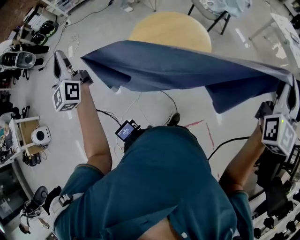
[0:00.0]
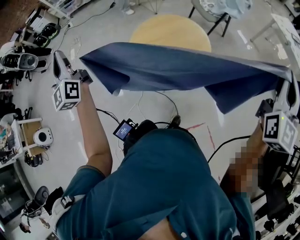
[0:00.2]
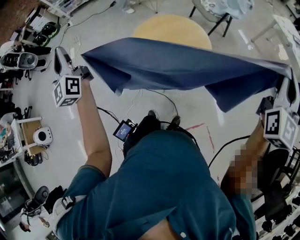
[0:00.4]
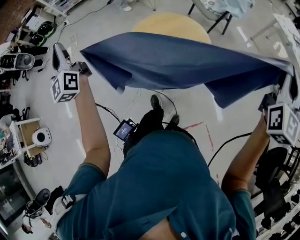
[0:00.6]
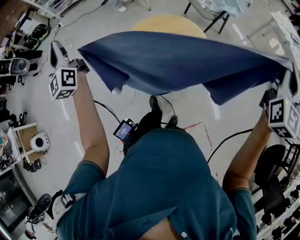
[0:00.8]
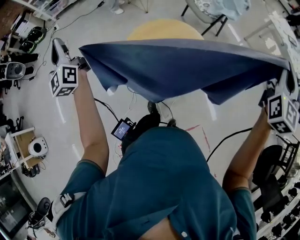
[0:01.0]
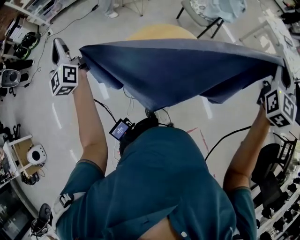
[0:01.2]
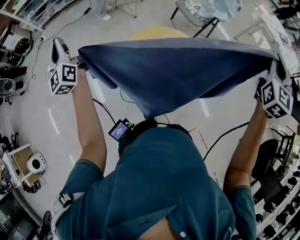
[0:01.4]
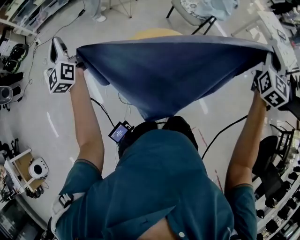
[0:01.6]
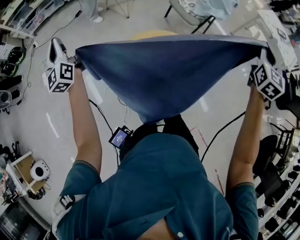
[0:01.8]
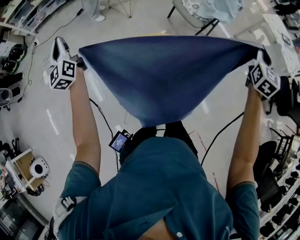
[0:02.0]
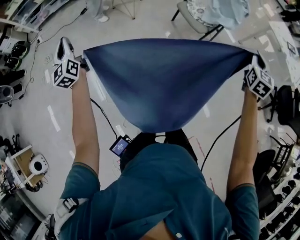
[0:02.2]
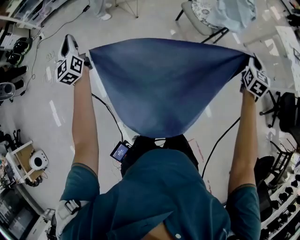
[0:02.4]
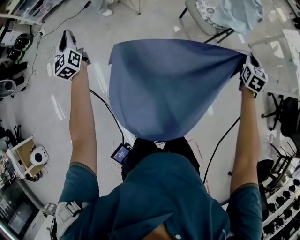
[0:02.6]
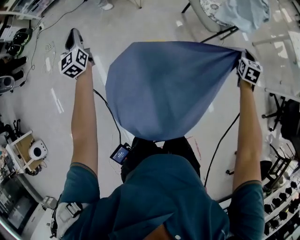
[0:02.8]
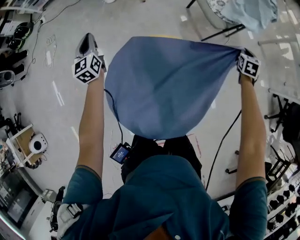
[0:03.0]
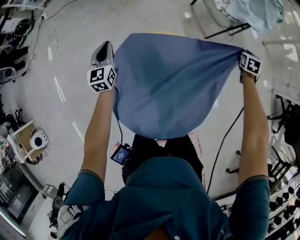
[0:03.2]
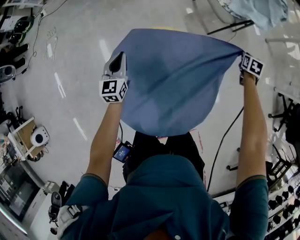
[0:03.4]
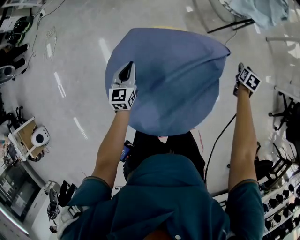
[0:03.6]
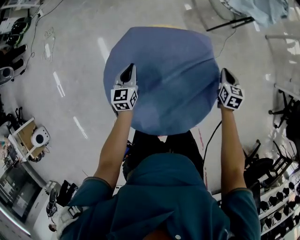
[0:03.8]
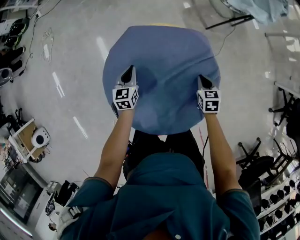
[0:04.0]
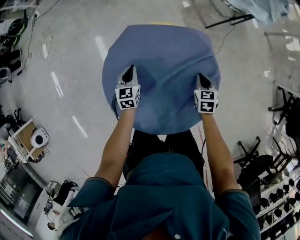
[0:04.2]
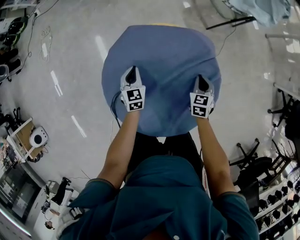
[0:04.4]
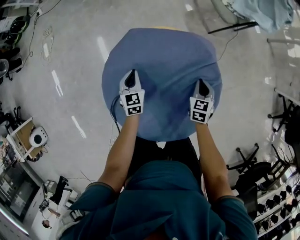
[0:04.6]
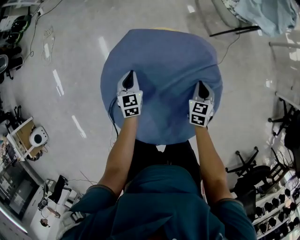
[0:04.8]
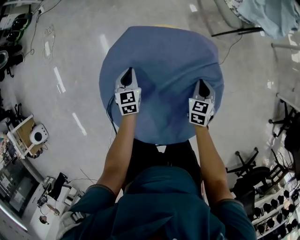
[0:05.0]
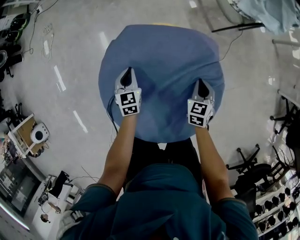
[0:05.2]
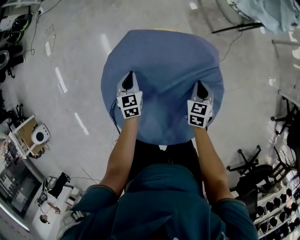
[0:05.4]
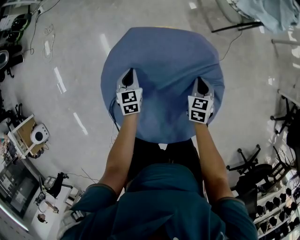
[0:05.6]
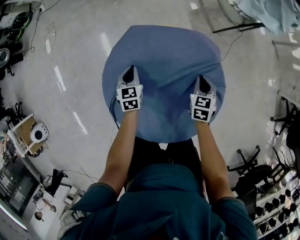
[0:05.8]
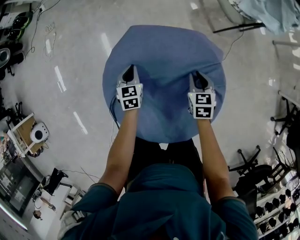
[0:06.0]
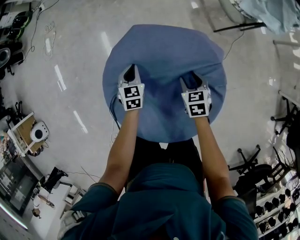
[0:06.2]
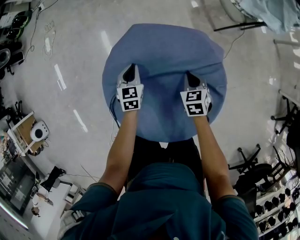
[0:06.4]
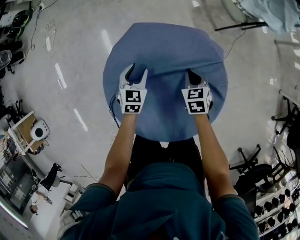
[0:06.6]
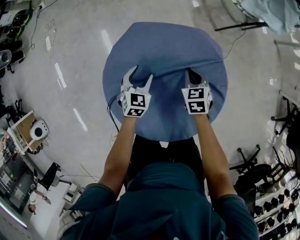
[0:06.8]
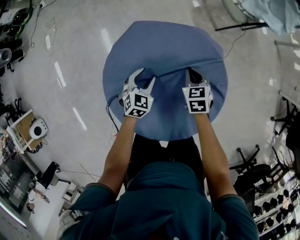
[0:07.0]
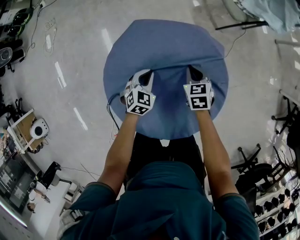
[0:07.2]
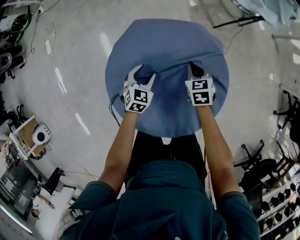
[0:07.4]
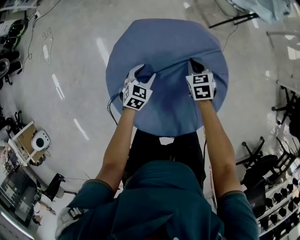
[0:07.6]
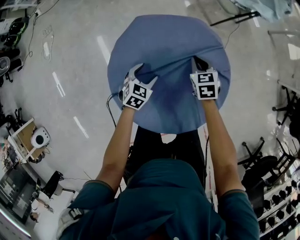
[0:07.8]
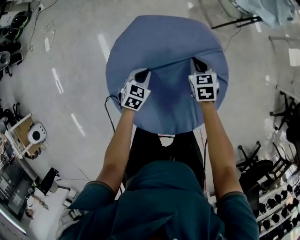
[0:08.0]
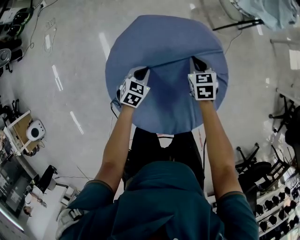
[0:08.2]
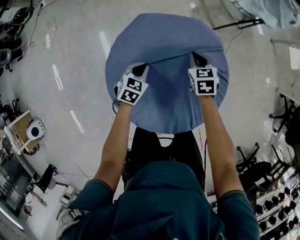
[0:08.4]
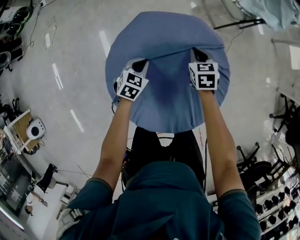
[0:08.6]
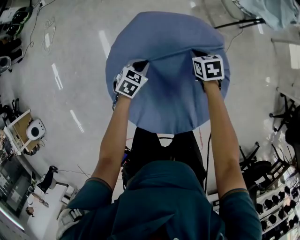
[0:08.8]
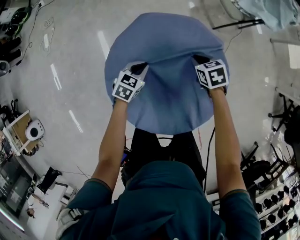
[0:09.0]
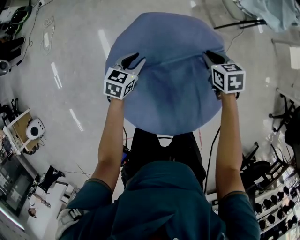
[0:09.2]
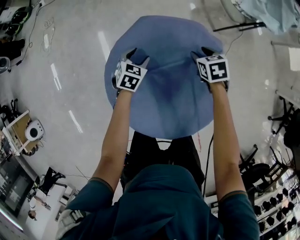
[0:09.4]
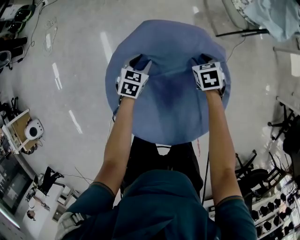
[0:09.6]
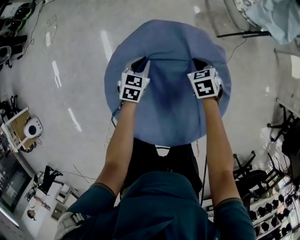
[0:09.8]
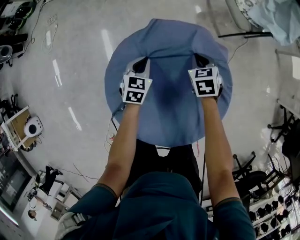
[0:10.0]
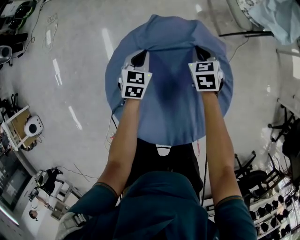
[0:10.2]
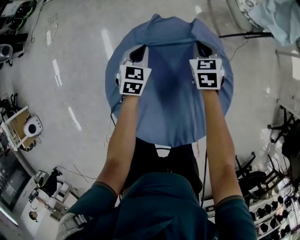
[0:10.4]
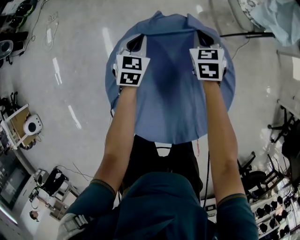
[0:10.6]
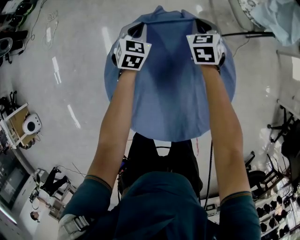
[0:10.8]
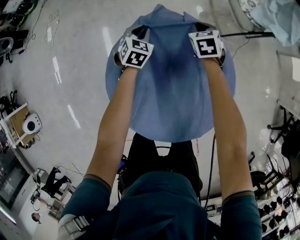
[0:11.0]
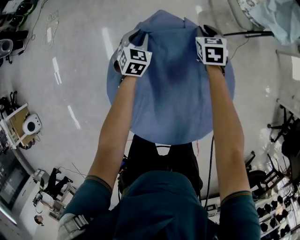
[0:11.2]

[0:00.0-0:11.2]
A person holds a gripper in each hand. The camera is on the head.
0:00.0 to 0:01.6: The two grippers go some 35 cm forward.
0:01.6 to 0:03.2: The left gripper heads downward, to the right and forward, covering about 40 cm, and points its fingers roughly 30 degrees further downward; the right gripper heads downward and forward, covering approximately 60 cm, and points its fingers some 50 degrees further downward.
0:03.2 to 0:04.8: The left gripper shifts roughly 20 cm downward, backward and to the right, while the right gripper travels to the left and backward by approximately 30 cm, and opens, then closes again.
0:04.8 to 0:06.4: The right gripper travels to the left by roughly 10 cm, and opens, then closes again.
0:06.4 to 0:08.0: The left gripper heads backward, covering roughly 10 cm, swivels approximately 30 degrees, and opens, then closes once more.
0:08.0 to 0:09.6: The left gripper shifts about 10 cm forward, and opens up; the right gripper is displaced forward by some 5 cm, and opens up.
0:09.6 to 0:11.2: The two grippers go some 10 cm forward. The right gripper closes.

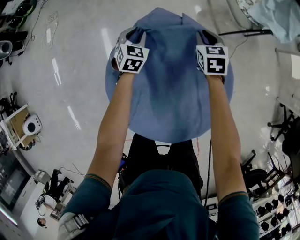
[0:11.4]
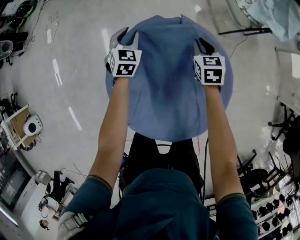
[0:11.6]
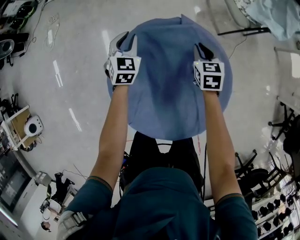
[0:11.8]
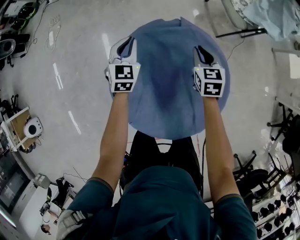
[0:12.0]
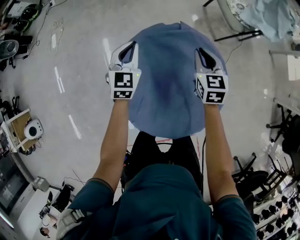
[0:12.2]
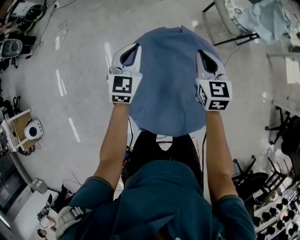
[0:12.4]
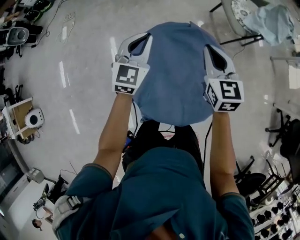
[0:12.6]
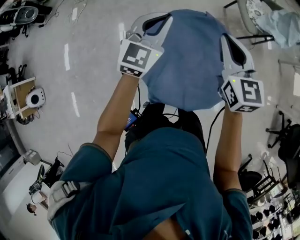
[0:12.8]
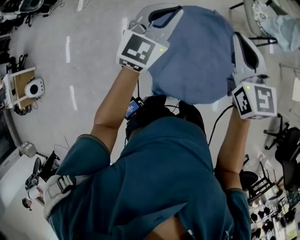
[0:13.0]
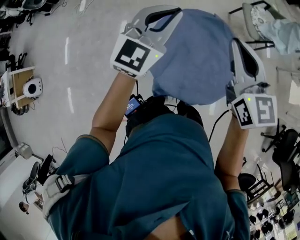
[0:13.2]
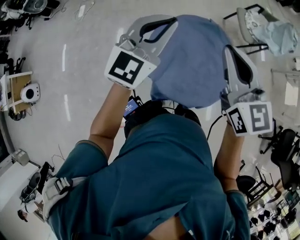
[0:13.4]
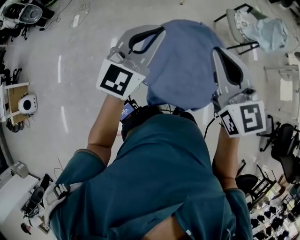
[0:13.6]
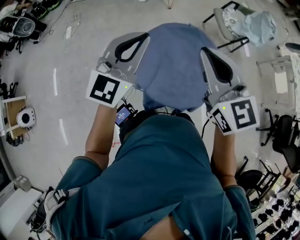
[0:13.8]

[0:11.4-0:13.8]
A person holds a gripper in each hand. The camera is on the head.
0:11.4 to 0:12.6: Both grippers move upward and backward, approximately 35 cm. The right gripper swivels approximately 20 degrees; the left gripper rotates some 30 degrees, and closes its fingers.
0:12.6 to 0:13.8: The left gripper heads backward and upward, covering roughly 30 cm. The right gripper shifts about 35 cm backward, upward and to the left.

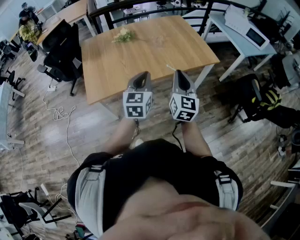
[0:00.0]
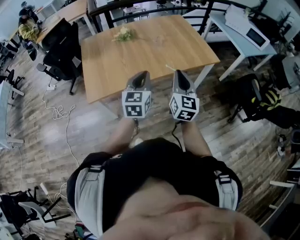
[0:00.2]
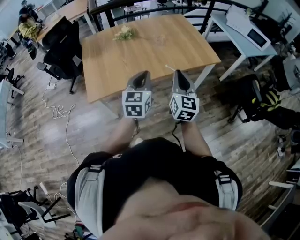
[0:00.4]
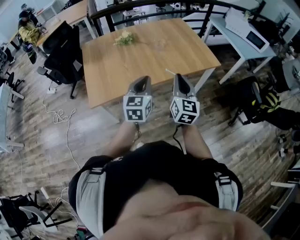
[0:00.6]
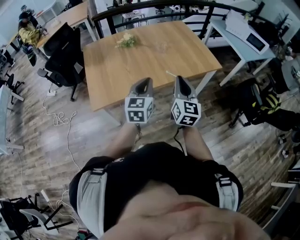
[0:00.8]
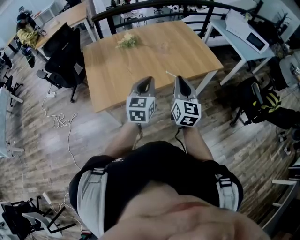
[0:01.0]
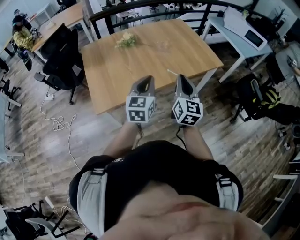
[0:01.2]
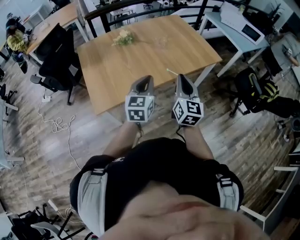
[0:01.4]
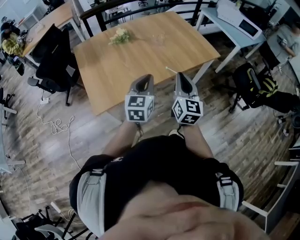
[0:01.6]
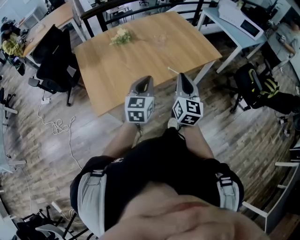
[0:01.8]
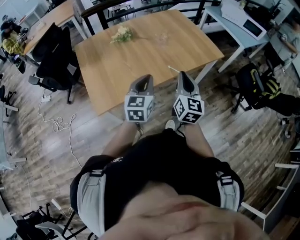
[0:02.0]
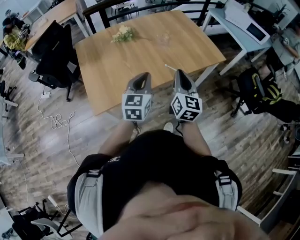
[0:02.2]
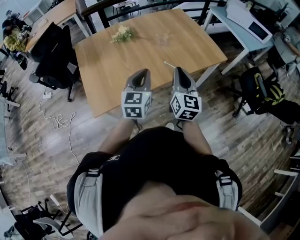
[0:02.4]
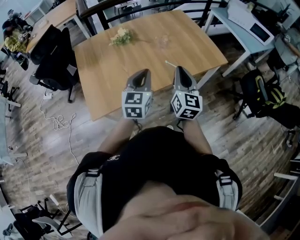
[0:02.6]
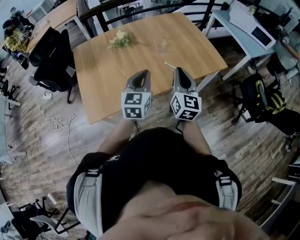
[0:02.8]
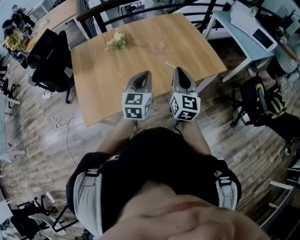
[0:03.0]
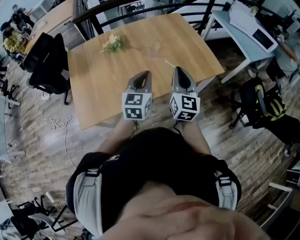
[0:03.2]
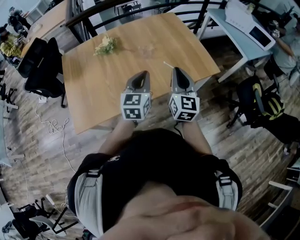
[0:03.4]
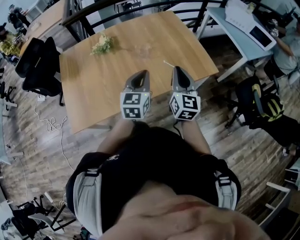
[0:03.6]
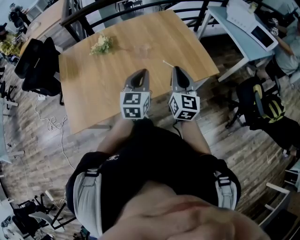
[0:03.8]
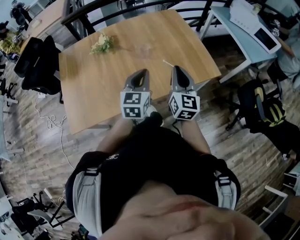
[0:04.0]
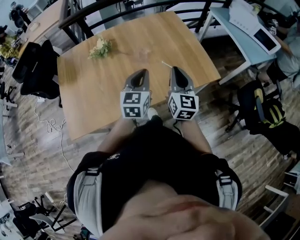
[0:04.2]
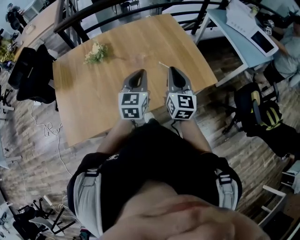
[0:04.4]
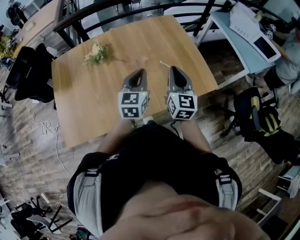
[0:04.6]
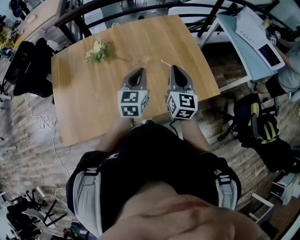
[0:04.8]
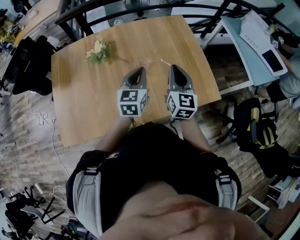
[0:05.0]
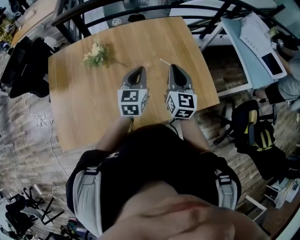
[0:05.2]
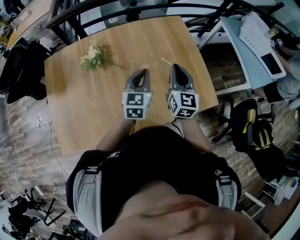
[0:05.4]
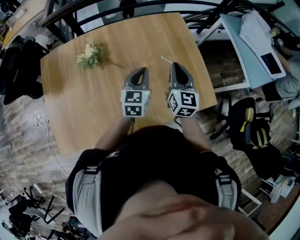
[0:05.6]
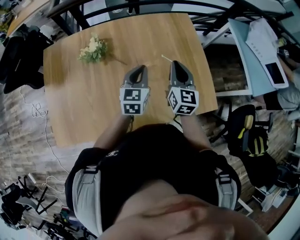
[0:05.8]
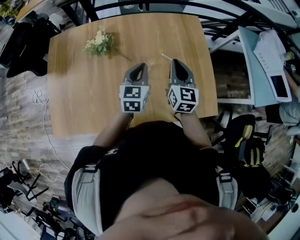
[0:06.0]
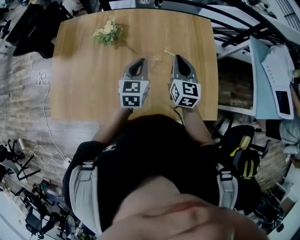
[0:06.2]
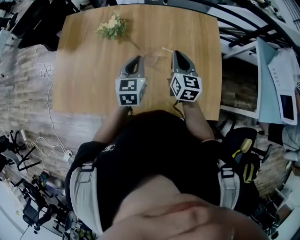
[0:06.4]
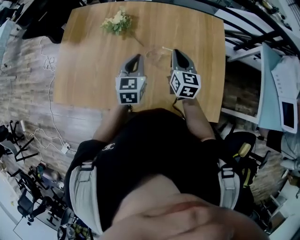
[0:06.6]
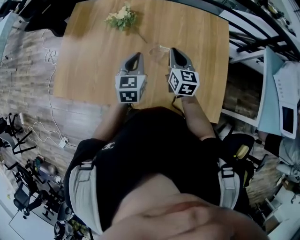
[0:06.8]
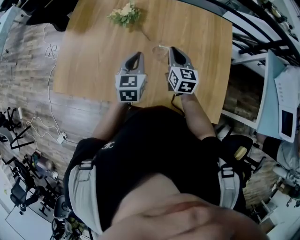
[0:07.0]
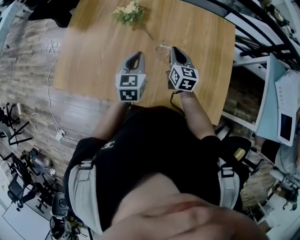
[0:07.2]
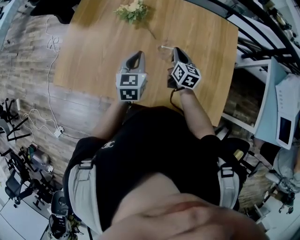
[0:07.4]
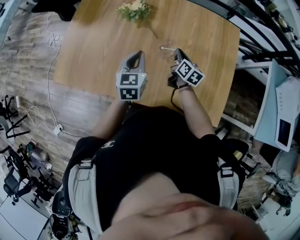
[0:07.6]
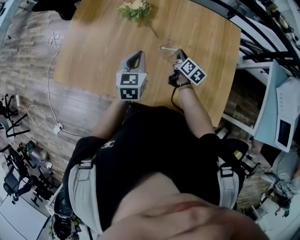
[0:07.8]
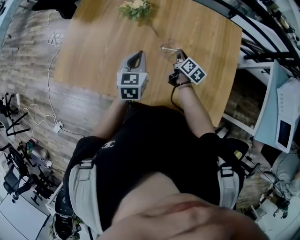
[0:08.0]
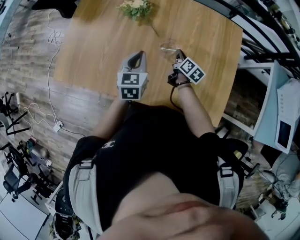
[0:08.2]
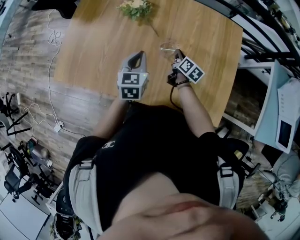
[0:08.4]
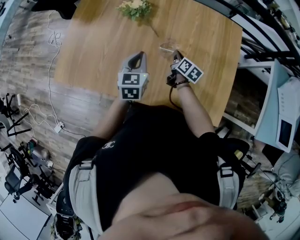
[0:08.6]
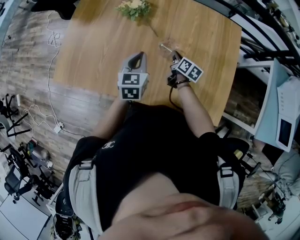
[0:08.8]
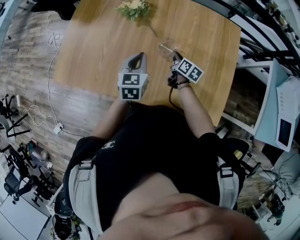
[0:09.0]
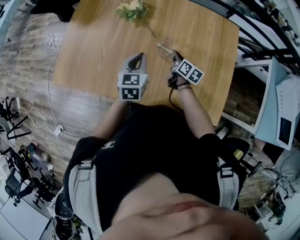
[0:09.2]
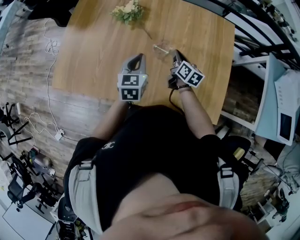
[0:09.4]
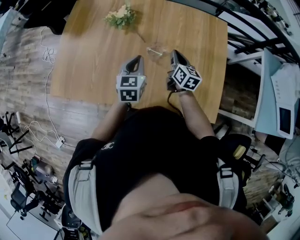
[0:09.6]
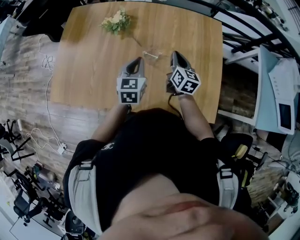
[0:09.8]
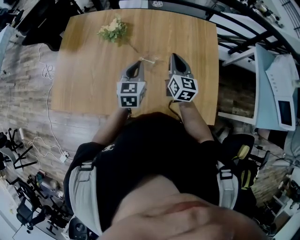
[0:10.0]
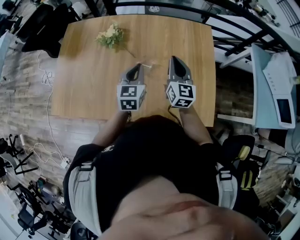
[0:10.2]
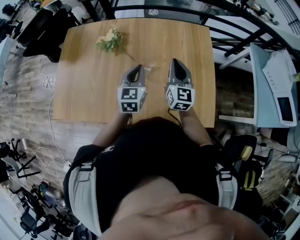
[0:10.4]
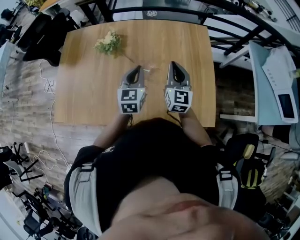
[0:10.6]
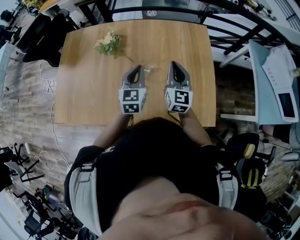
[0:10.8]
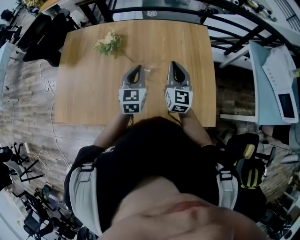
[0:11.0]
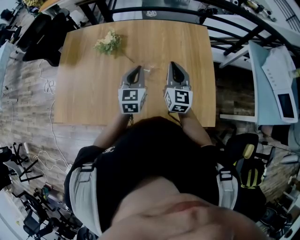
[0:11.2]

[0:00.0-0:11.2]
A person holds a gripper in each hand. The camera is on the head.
0:00.0 to 0:01.6: The two grippers go roughly 10 cm to the left.
0:01.6 to 0:03.2: The two grippers go approximately 25 cm forward and to the right.
0:03.2 to 0:04.8: The grippers both shift forward by approximately 20 cm.
0:04.8 to 0:06.4: The right gripper shifts some 15 cm forward, and changes its angle by some 30 degrees; the left gripper goes some 10 cm forward, and swivels about 30 degrees.
0:06.4 to 0:08.0: The right gripper is displaced downward by about 20 cm, and rotates some 40 degrees. Meanwhile the left gripper goes approximately 5 cm to the left.
0:08.0 to 0:09.6: The right gripper heads upward, covering about 10 cm, and changes its angle by some 20 degrees.
0:09.6 to 0:11.2: The right gripper is displaced upward and to the right by some 15 cm, and changes its angle by some 30 degrees. The left gripper heads to the right and upward, covering about 10 cm.
